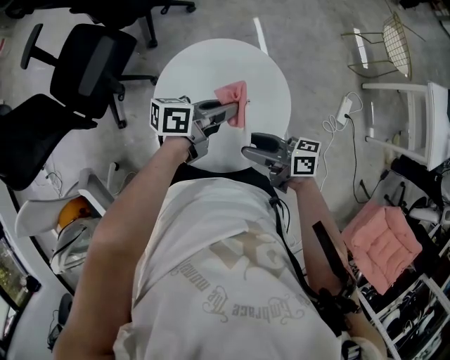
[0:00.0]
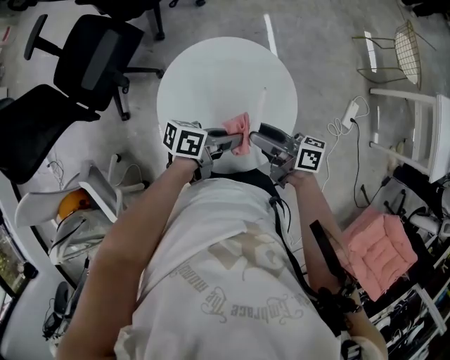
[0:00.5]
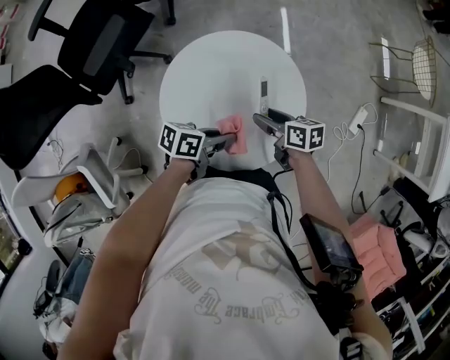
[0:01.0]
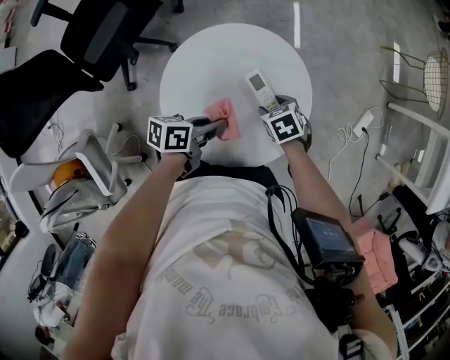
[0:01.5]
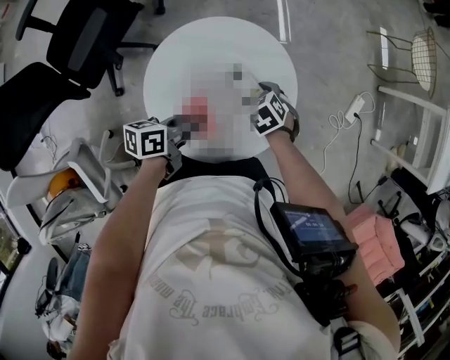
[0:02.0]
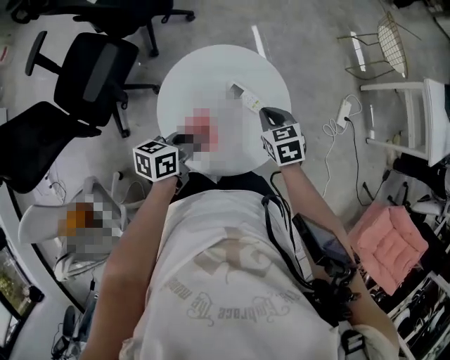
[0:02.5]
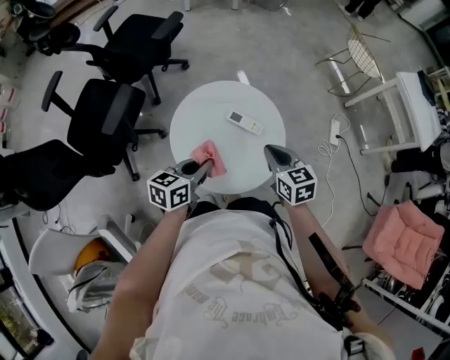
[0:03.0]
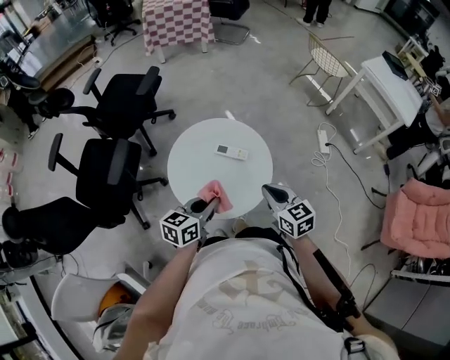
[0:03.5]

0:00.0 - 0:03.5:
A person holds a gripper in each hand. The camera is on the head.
0:00.0 - 0:02.0: The right gripper is displaced downward by about 15 cm, and tilts its fingers about 60 degrees downward, while the left gripper shifts about 10 cm downward, and rotates approximately 30 degrees.
0:02.0 - 0:03.5: The right gripper moves upward, approximately 20 cm, tilts its fingers about 50 degrees upward, and closes its fingers; the left gripper shifts approximately 15 cm upward, and rolls clockwise, seen from behind, by approximately 40 degrees.

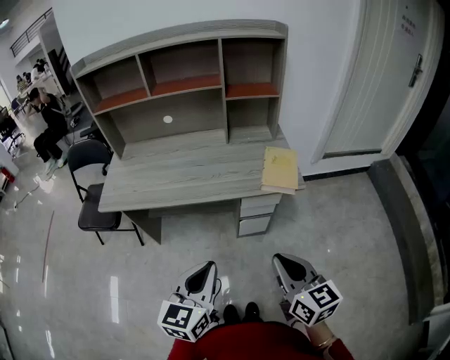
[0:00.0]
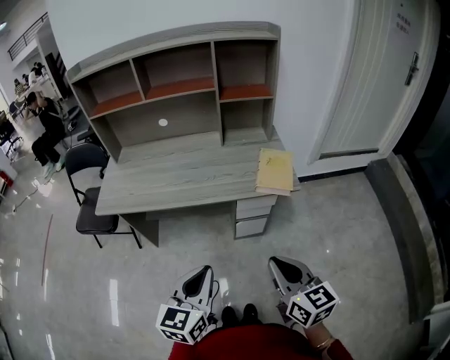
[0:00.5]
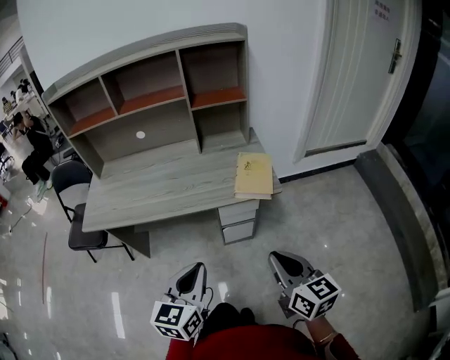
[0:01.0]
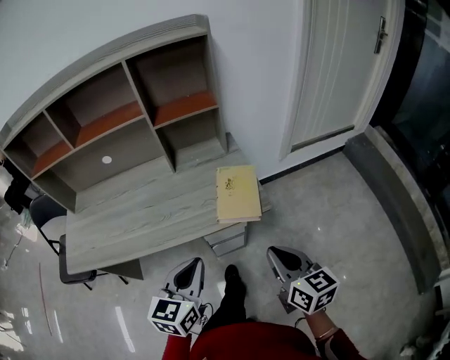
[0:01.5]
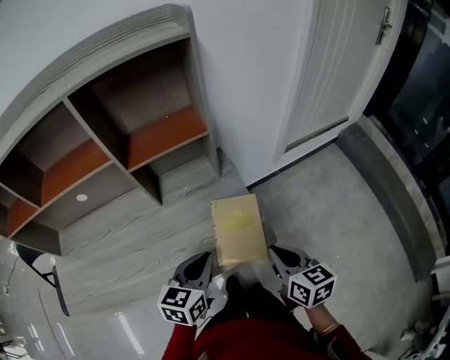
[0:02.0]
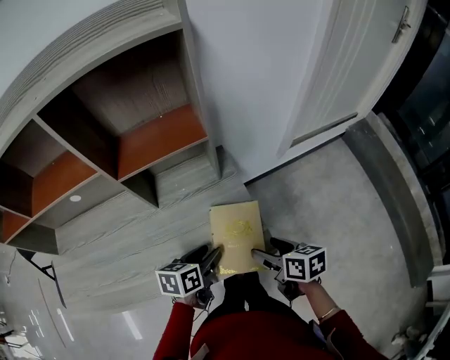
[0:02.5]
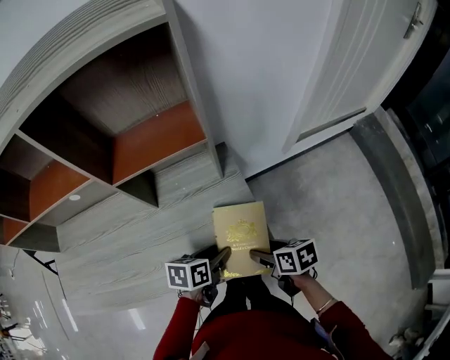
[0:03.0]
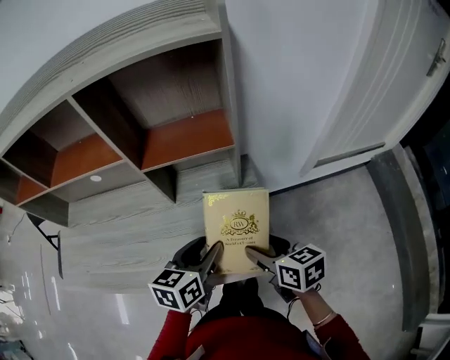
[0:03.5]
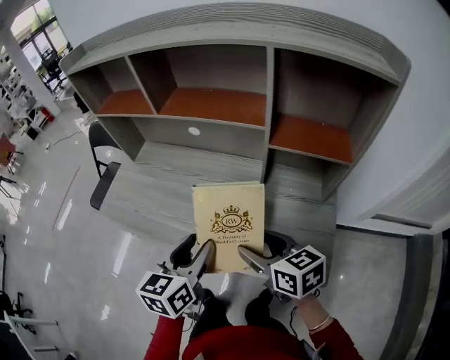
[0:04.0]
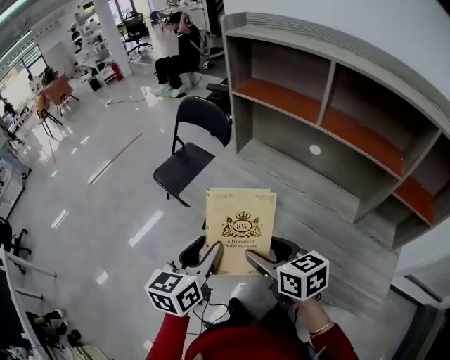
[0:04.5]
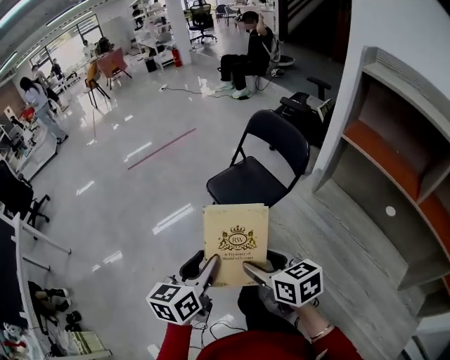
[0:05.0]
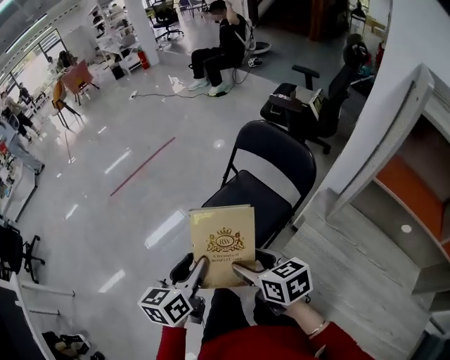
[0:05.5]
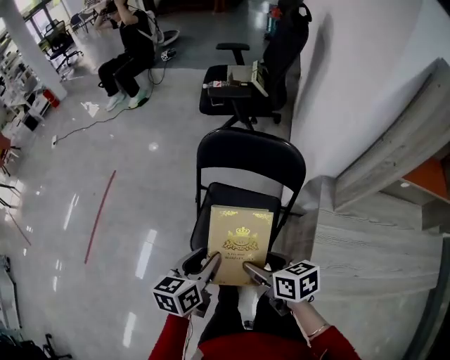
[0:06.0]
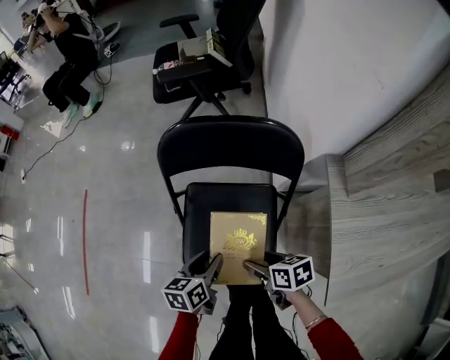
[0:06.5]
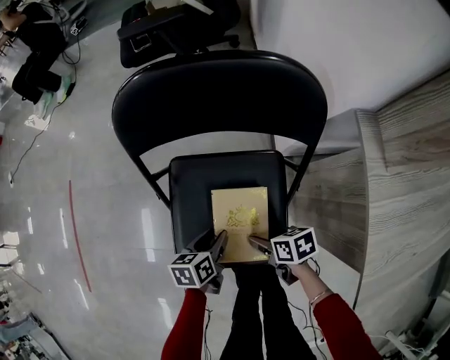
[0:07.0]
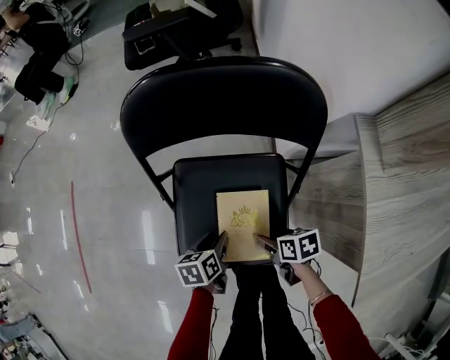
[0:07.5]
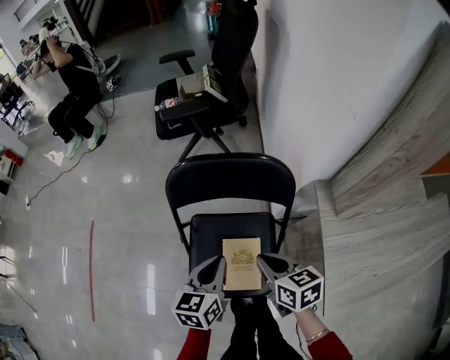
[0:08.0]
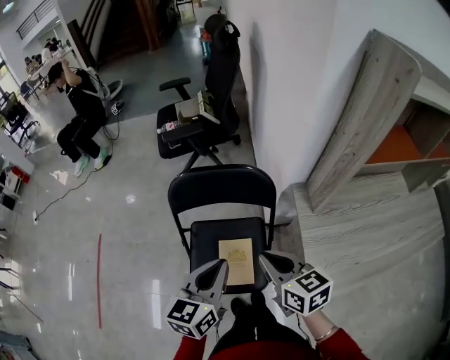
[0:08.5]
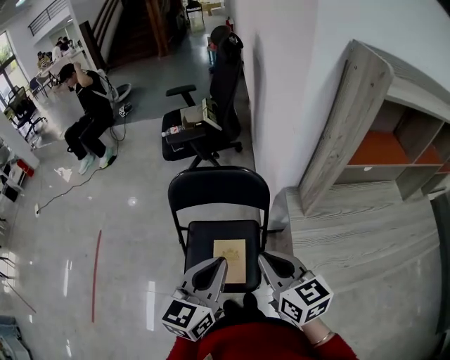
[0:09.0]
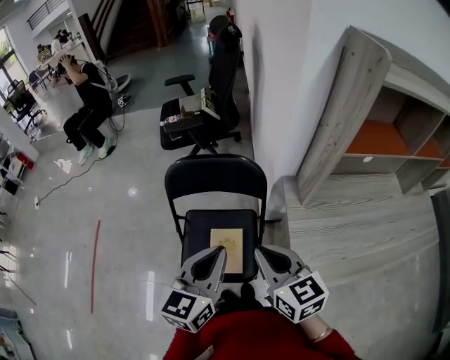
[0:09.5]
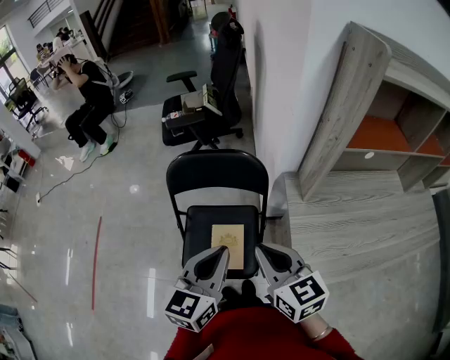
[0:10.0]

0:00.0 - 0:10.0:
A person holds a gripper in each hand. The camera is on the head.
0:00.0 - 0:02.0: Both grippers travel together forward and to the right, roughly 35 cm. The right gripper rotates about 20 degrees. Meanwhile the left gripper changes its angle by approximately 20 degrees.
0:02.0 - 0:04.0: The right gripper goes downward and returns, roughly 10 cm each way, turns by roughly 50 degrees, and opens up. Meanwhile the left gripper moves some 20 cm, changes its angle by about 40 degrees, and opens its fingers.
0:04.0 - 0:06.0: The pair of grippers is taken about 80 cm.
0:06.0 - 0:08.0: The left gripper travels forward and to the right by about 10 cm, moves about 35 cm downward and comes back, and closes up, while the right gripper is displaced forward by approximately 10 cm, goes downward and returns, some 30 cm each way, turns by roughly 20 degrees, and closes up.
0:08.0 - 0:10.0: The left gripper moves upward, backward and to the right, approximately 20 cm; the right gripper moves upward and backward, some 20 cm, and swivels some 30 degrees.

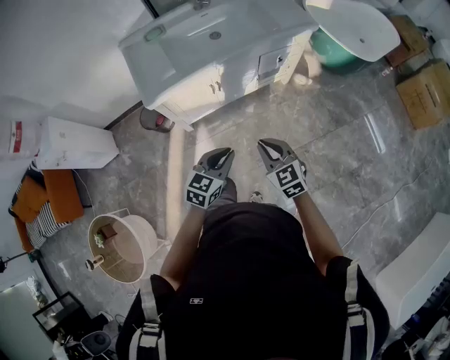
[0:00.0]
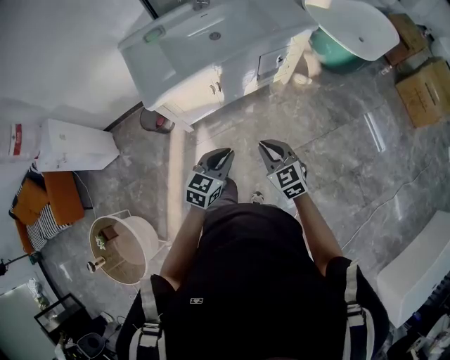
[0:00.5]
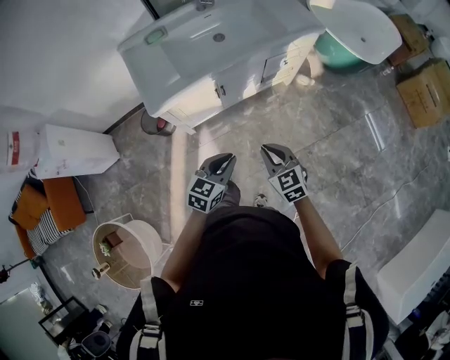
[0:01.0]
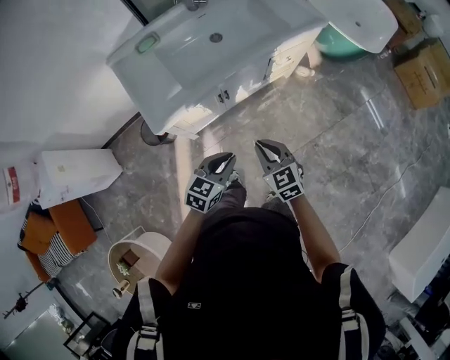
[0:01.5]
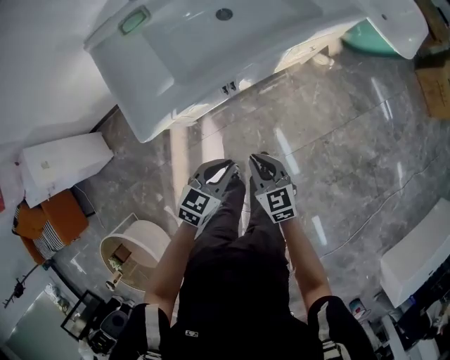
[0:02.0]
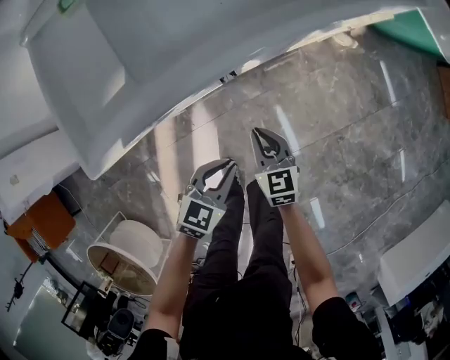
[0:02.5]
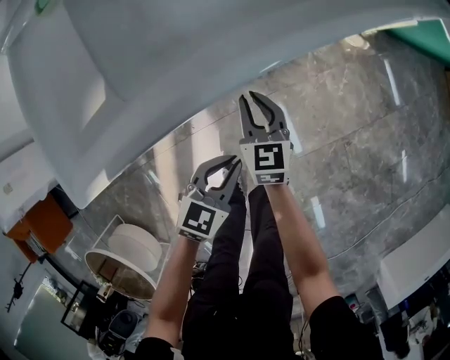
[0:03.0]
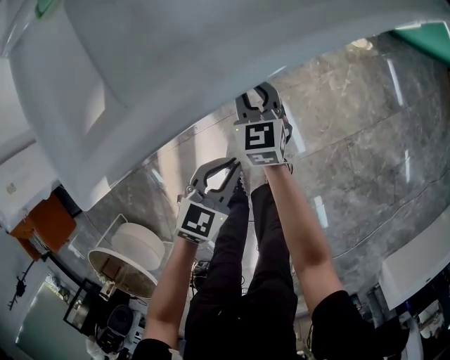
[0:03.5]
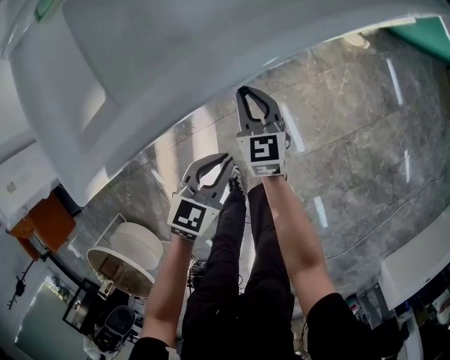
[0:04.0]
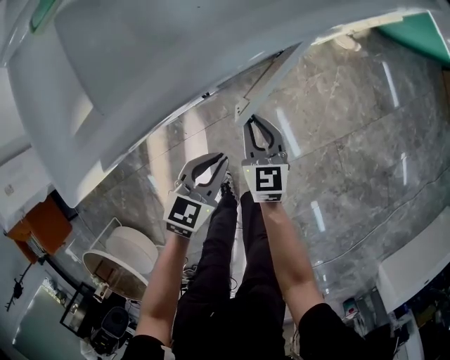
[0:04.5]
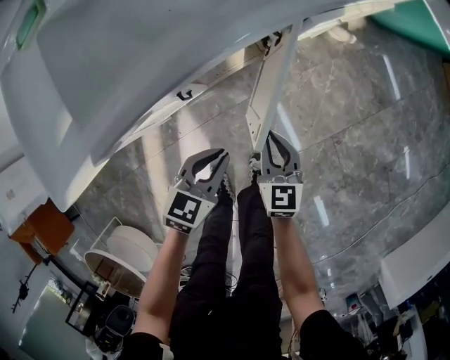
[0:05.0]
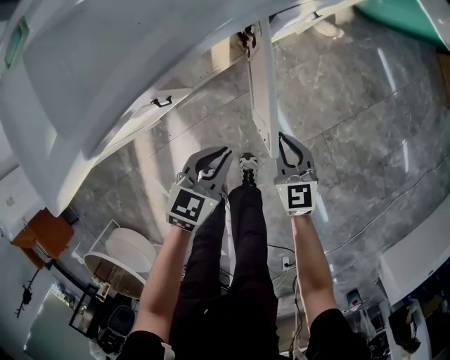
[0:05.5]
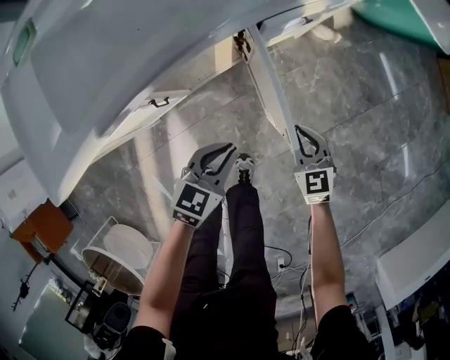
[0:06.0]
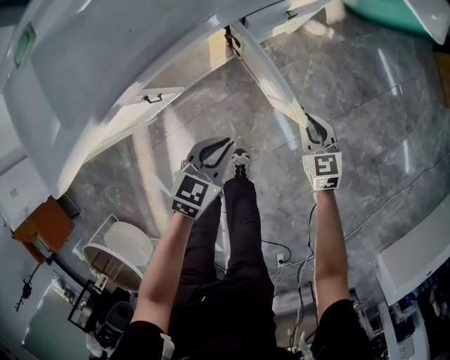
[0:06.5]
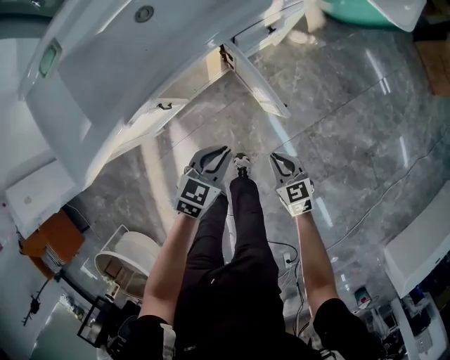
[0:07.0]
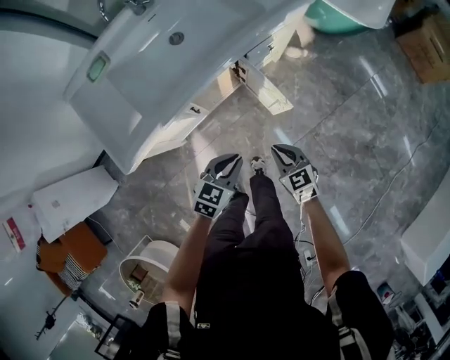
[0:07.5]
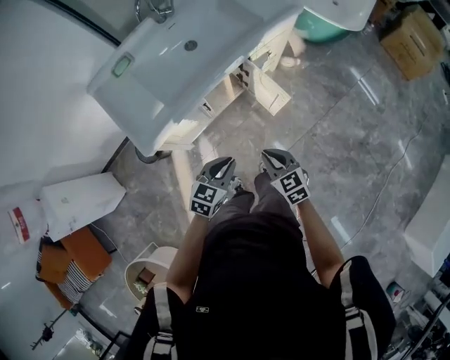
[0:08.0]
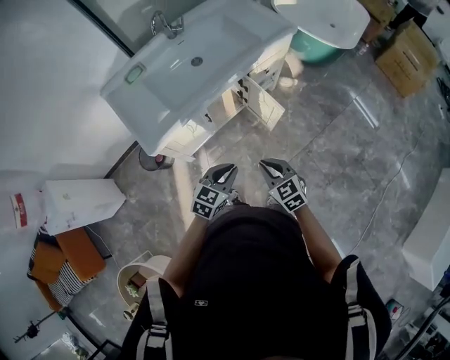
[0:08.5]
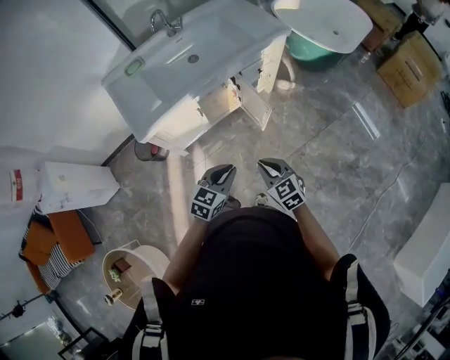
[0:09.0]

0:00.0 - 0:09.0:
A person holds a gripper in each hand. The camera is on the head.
0:00.0 - 0:02.0: The right gripper moves downward, to the left and forward, approximately 25 cm. The left gripper travels forward, downward and to the left by some 20 cm.
0:02.0 - 0:04.5: Both grippers travel together downward and forward, about 25 cm.
0:04.5 - 0:07.0: The left gripper shifts approximately 15 cm to the right and upward; the right gripper is displaced to the right by approximately 25 cm, and turns by some 20 degrees.
0:07.0 - 0:09.0: Both grippers travel together upward and backward, about 35 cm.

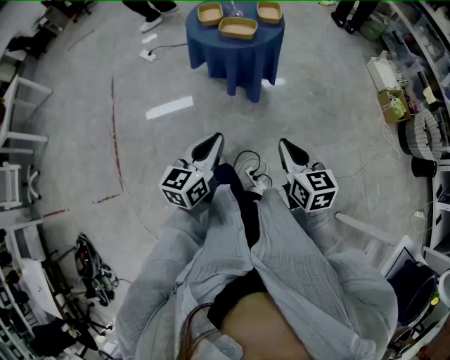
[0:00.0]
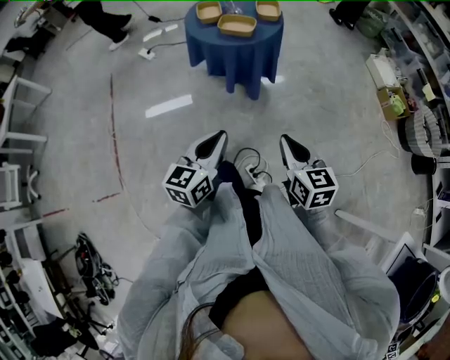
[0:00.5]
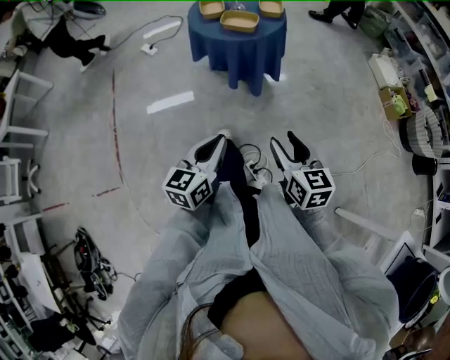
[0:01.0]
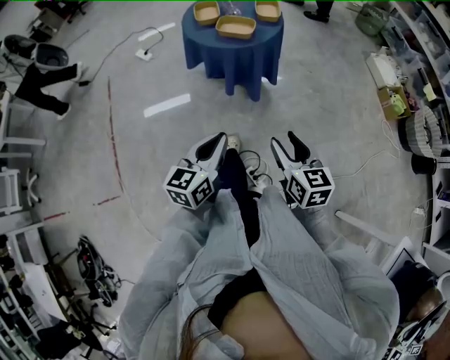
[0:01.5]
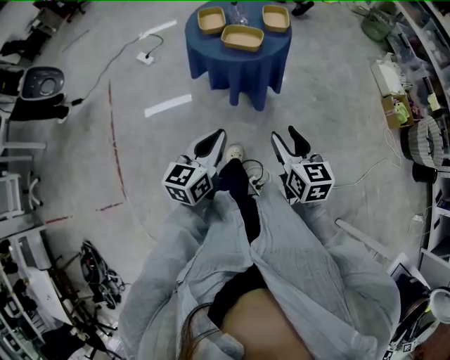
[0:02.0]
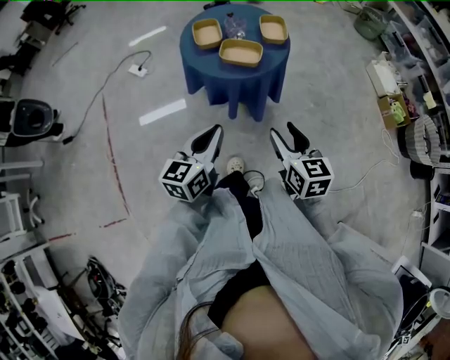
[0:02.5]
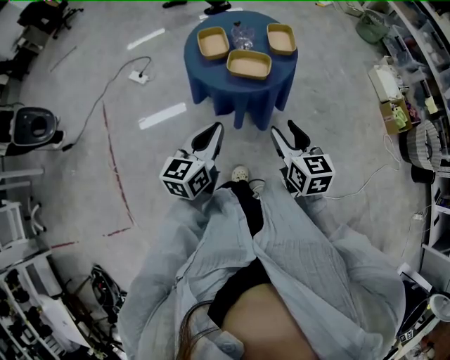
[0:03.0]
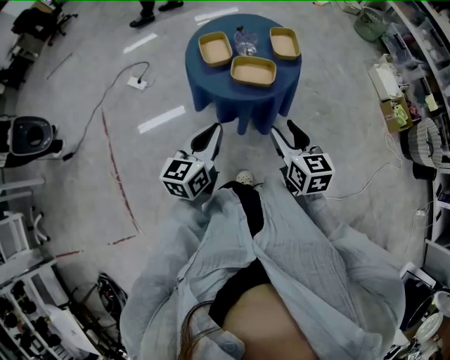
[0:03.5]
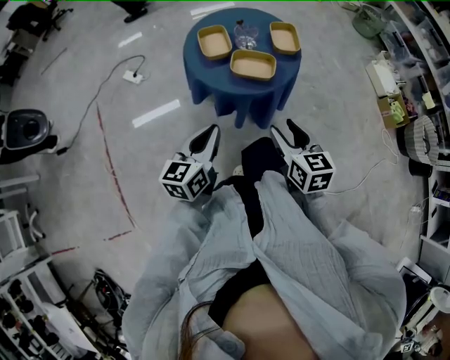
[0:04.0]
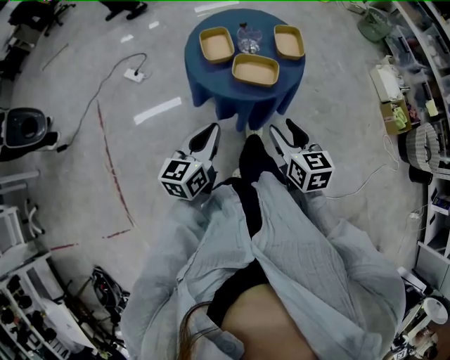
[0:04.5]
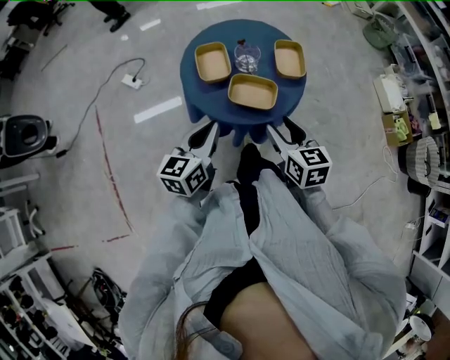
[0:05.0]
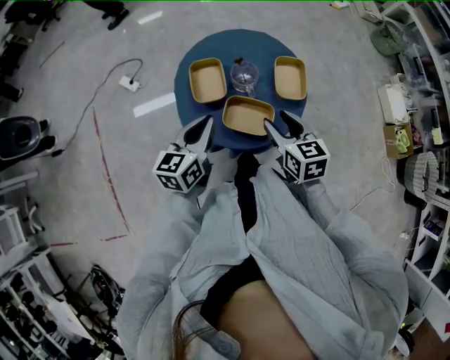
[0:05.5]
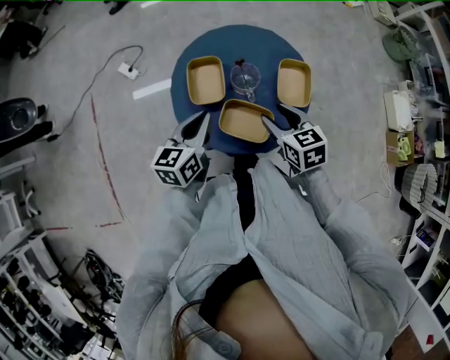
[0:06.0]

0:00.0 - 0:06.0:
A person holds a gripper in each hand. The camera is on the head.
0:00.0 - 0:02.0: Both grippers travel together forward, about 10 cm. The right gripper opens.
0:02.0 - 0:04.0: Both grippers travel together forward and to the left, roughly 20 cm.
0:04.0 - 0:06.0: Both grippers travel together forward, about 30 cm. The right gripper swivels approximately 20 degrees.
